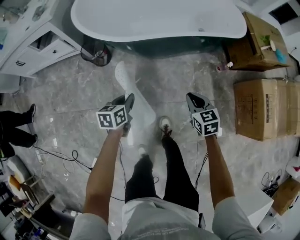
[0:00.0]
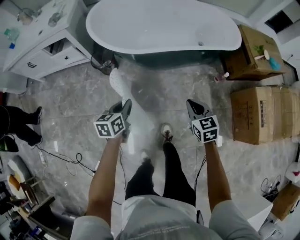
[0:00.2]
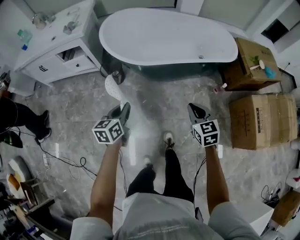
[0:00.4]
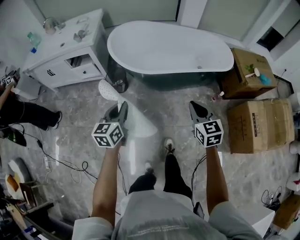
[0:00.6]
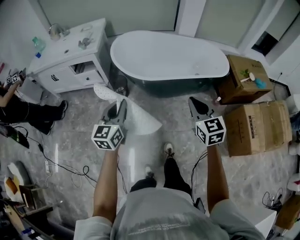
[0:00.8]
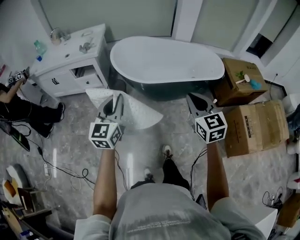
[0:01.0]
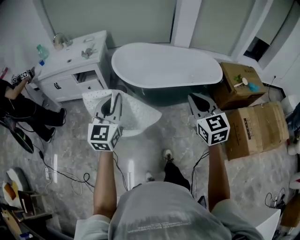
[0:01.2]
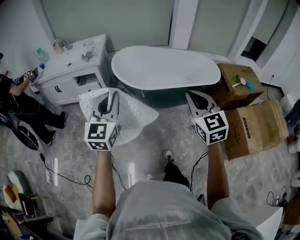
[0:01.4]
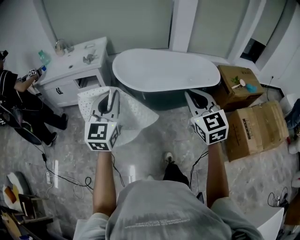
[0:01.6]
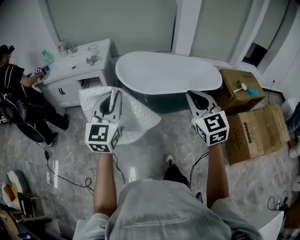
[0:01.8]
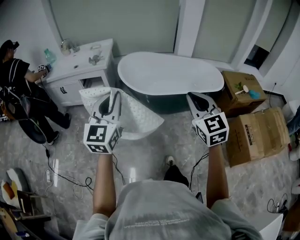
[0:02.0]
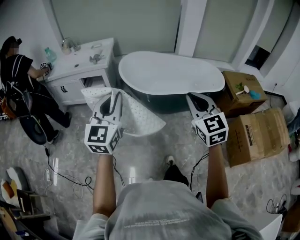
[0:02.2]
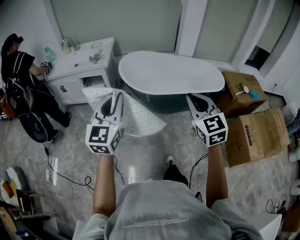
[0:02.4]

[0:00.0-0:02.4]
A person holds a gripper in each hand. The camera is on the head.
0:00.0 to 0:01.2: Both grippers move upward, roughly 50 cm. The right gripper rotates some 30 degrees; the left gripper angles its fingers upward, by roughly 40 degrees.
0:01.2 to 0:02.4: The right gripper shifts by approximately 5 cm, while the left gripper goes roughly 5 cm upward.

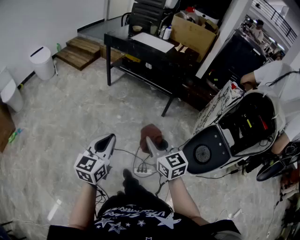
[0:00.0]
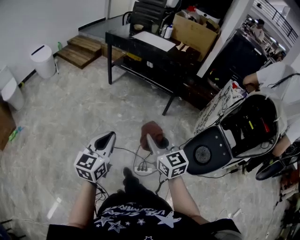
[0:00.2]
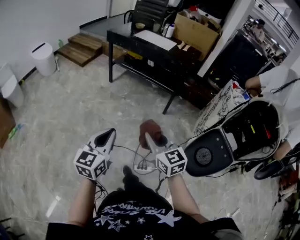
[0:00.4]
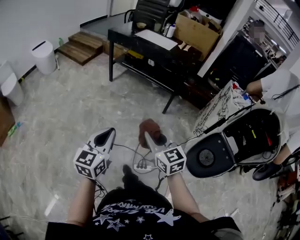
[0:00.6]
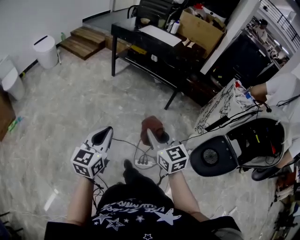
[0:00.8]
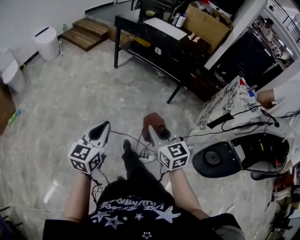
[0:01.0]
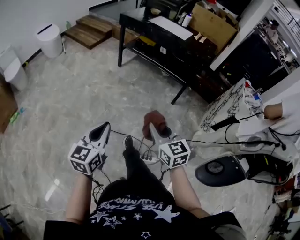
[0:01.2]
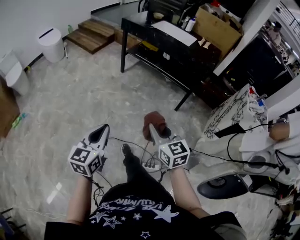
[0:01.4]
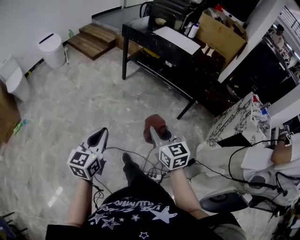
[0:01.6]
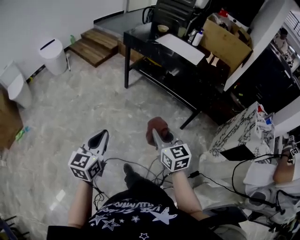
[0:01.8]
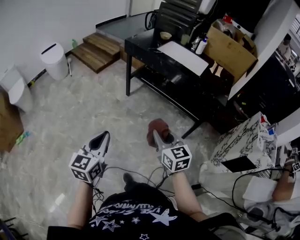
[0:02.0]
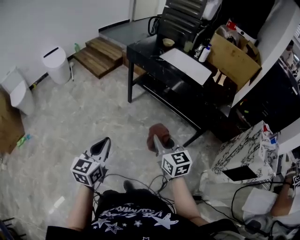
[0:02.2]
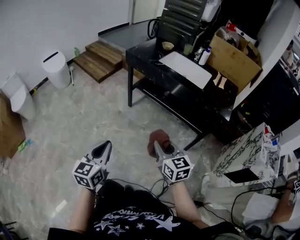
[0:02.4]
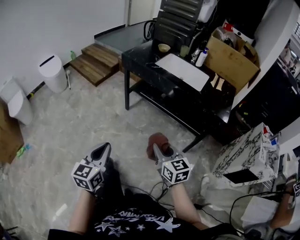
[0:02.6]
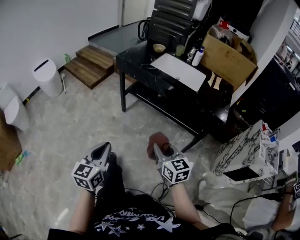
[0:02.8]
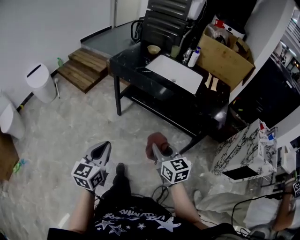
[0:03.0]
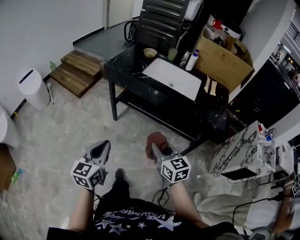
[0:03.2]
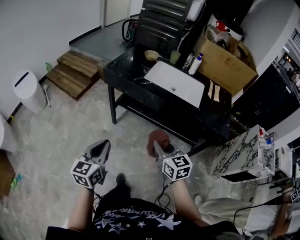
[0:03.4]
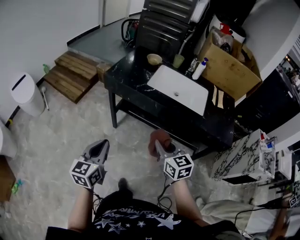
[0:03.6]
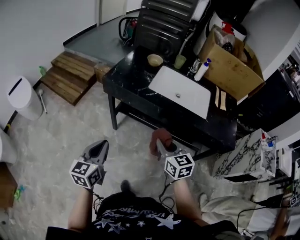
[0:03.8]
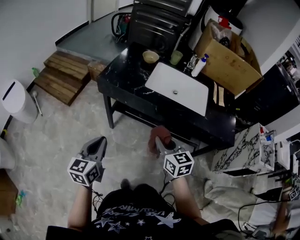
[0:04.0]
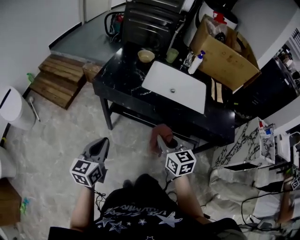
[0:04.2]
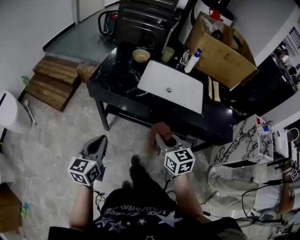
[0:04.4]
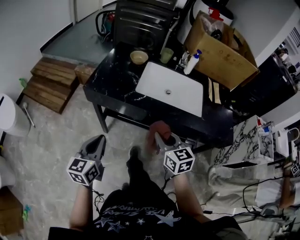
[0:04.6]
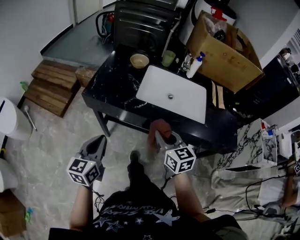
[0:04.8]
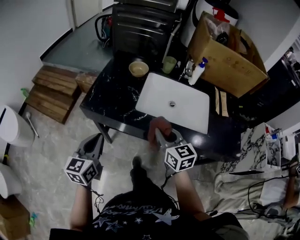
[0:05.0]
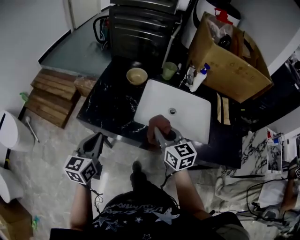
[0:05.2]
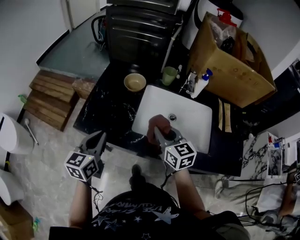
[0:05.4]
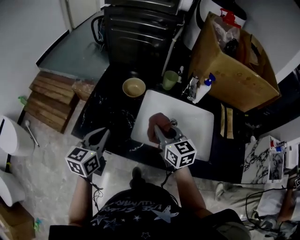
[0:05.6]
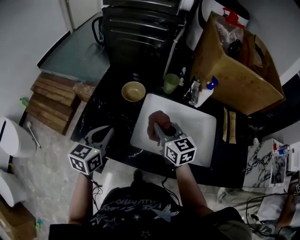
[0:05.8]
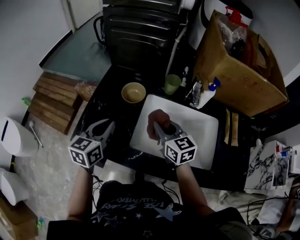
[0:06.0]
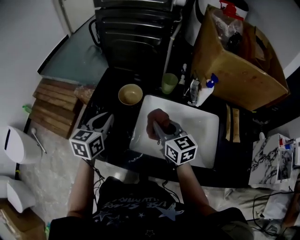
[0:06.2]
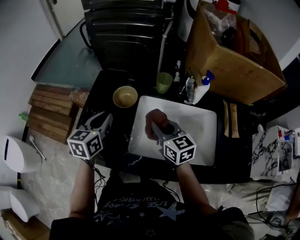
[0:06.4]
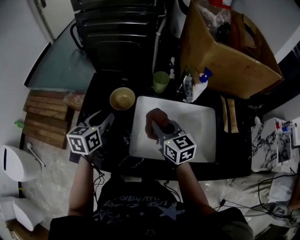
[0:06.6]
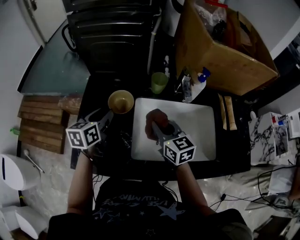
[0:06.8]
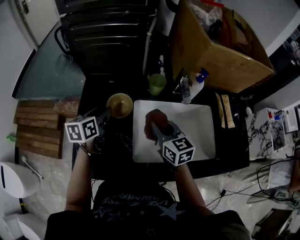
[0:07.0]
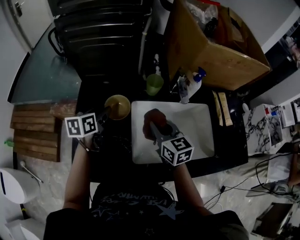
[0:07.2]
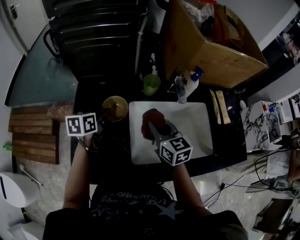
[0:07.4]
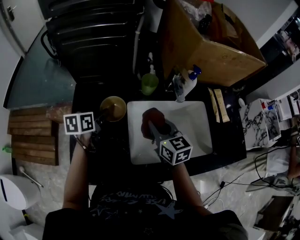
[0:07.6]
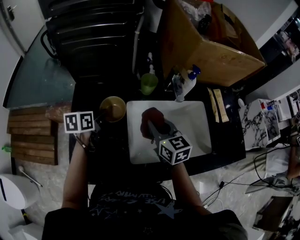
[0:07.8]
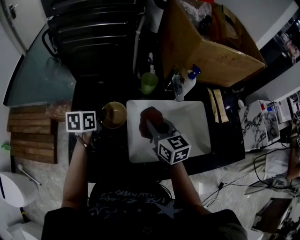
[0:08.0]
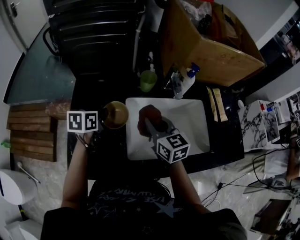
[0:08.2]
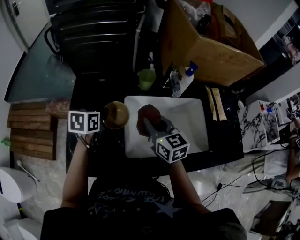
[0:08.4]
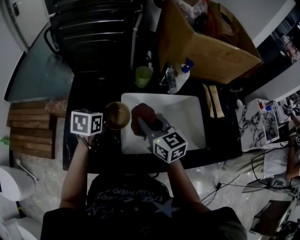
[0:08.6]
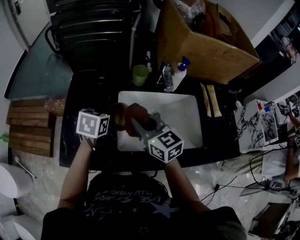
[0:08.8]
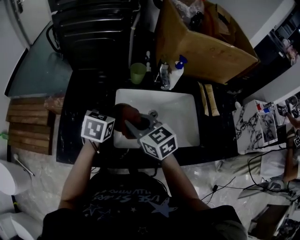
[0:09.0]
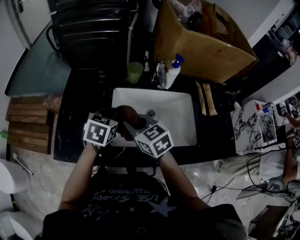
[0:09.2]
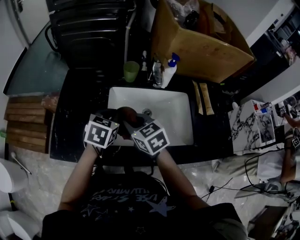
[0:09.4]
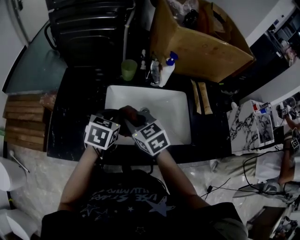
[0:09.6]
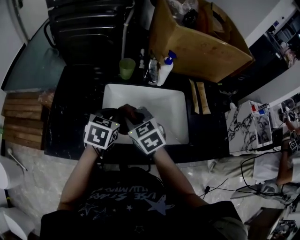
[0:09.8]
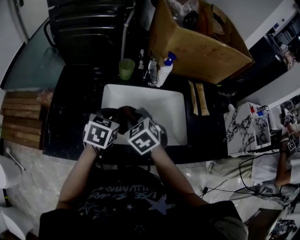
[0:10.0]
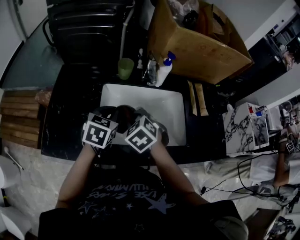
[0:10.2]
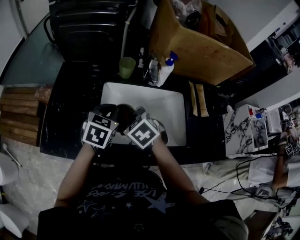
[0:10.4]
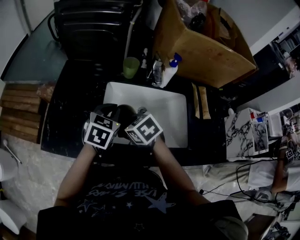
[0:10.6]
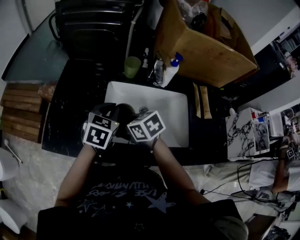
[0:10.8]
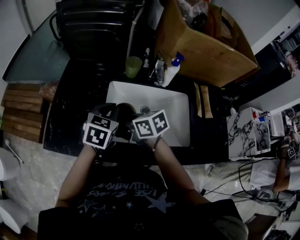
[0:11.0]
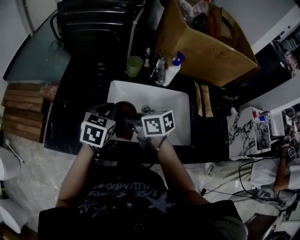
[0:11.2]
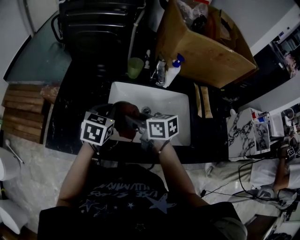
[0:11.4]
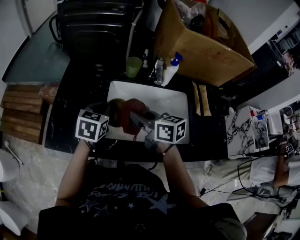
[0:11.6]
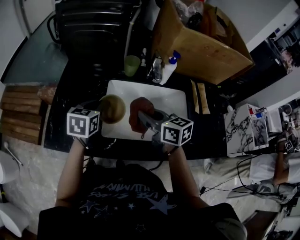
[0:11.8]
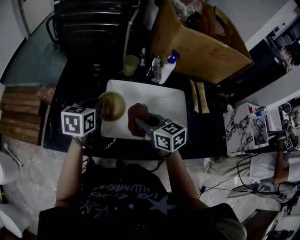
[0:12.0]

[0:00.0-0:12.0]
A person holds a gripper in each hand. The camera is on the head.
0:00.0 to 0:01.6: The grippers both shift forward and to the left by approximately 20 cm.
0:01.6 to 0:03.0: The grippers both shift forward by about 35 cm.
0:03.0 to 0:04.4: The two grippers go about 35 cm forward.
0:04.4 to 0:06.0: The two grippers go roughly 40 cm forward.
0:06.0 to 0:07.6: The right gripper moves forward, some 5 cm, and rotates some 20 degrees, while the left gripper heads forward and downward, covering roughly 20 cm, swivels about 30 degrees, and opens up.
0:07.6 to 0:09.0: The right gripper moves backward, roughly 10 cm, and turns by about 20 degrees. The left gripper is displaced to the right and backward by some 15 cm, turns by approximately 30 degrees, and closes up.
0:09.0 to 0:10.4: The right gripper travels downward and to the right by about 10 cm, and tips its fingers downward by roughly 30 degrees, while the left gripper shifts roughly 10 cm to the right.
0:10.4 to 0:12.0: The right gripper changes place by some 5 cm, and points its fingers approximately 30 degrees further upward; the left gripper shifts some 10 cm to the left.

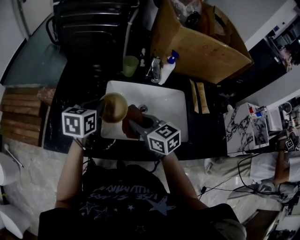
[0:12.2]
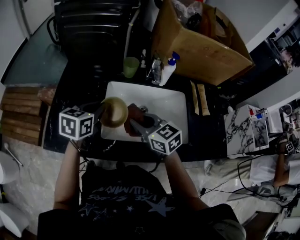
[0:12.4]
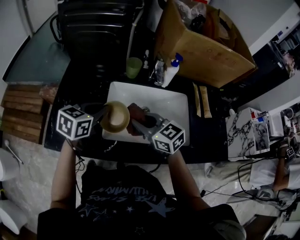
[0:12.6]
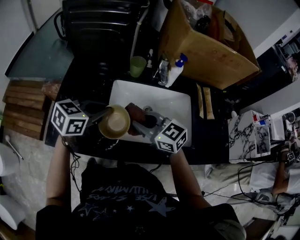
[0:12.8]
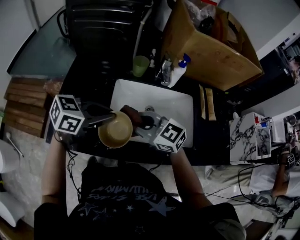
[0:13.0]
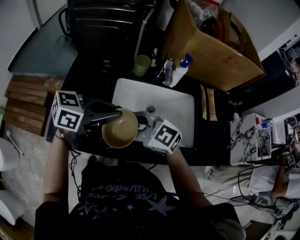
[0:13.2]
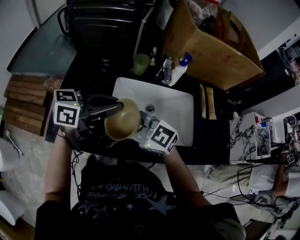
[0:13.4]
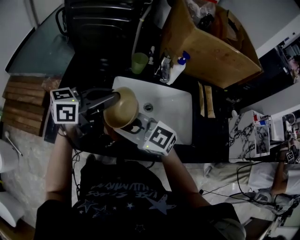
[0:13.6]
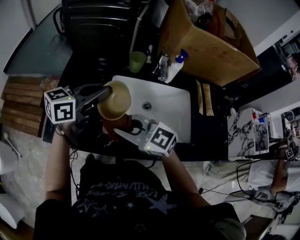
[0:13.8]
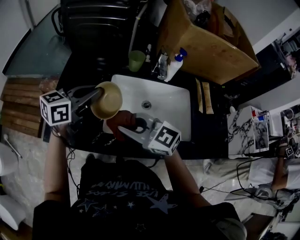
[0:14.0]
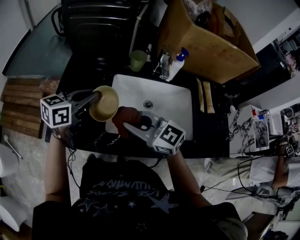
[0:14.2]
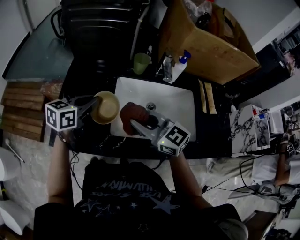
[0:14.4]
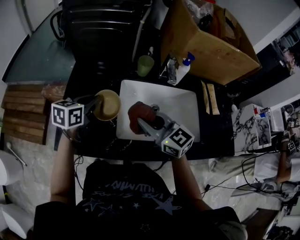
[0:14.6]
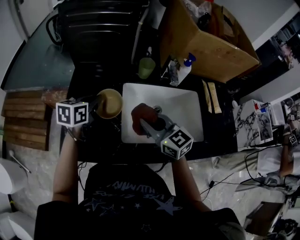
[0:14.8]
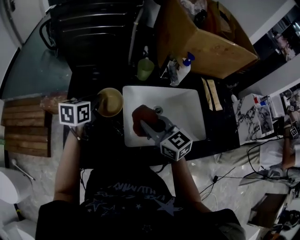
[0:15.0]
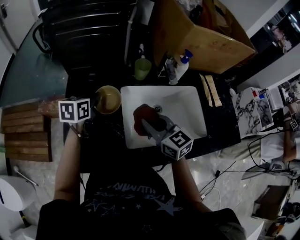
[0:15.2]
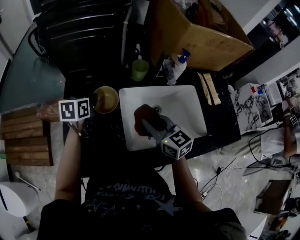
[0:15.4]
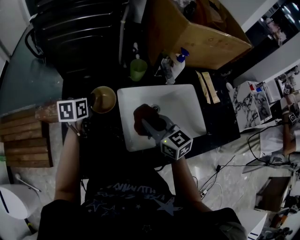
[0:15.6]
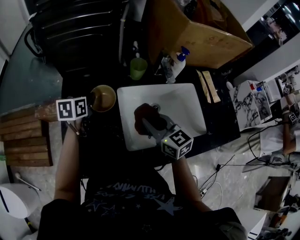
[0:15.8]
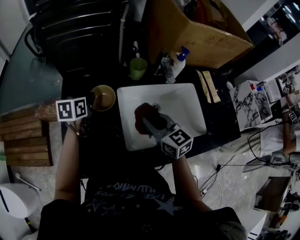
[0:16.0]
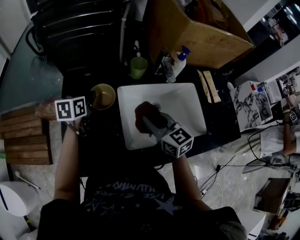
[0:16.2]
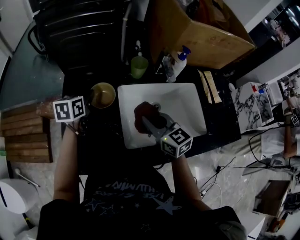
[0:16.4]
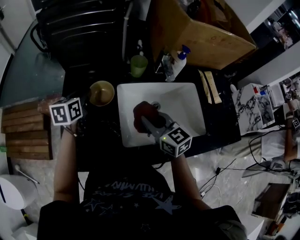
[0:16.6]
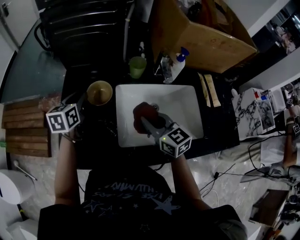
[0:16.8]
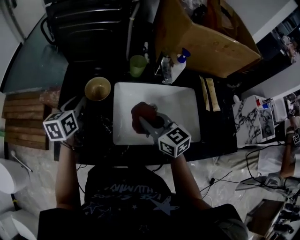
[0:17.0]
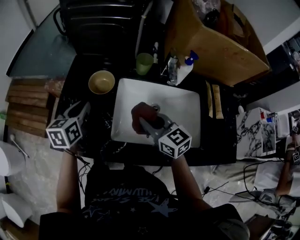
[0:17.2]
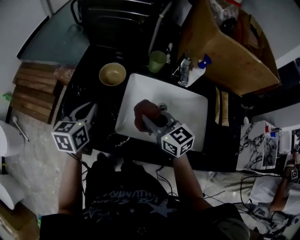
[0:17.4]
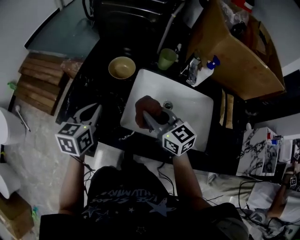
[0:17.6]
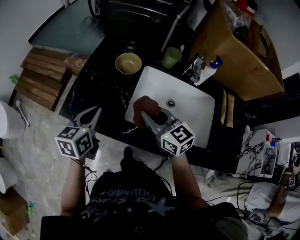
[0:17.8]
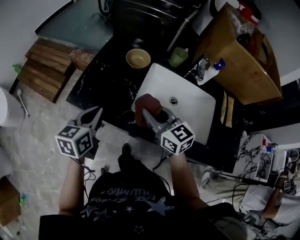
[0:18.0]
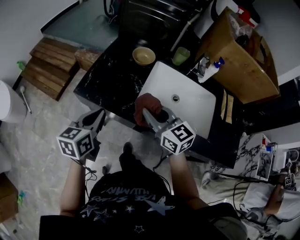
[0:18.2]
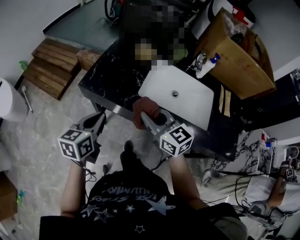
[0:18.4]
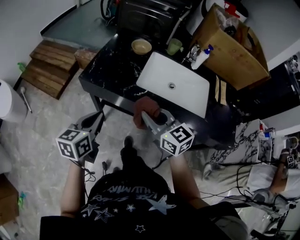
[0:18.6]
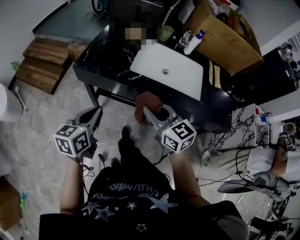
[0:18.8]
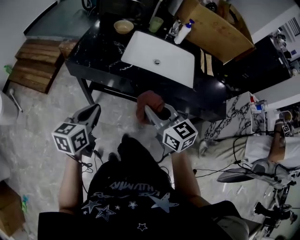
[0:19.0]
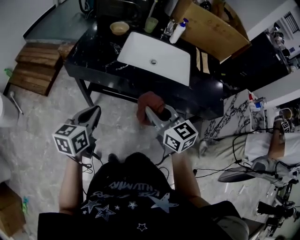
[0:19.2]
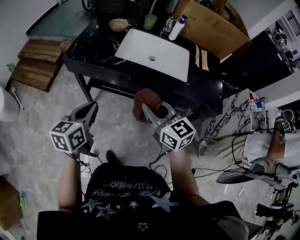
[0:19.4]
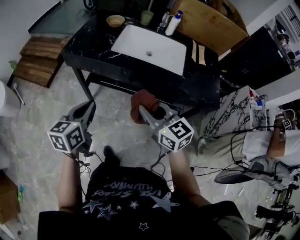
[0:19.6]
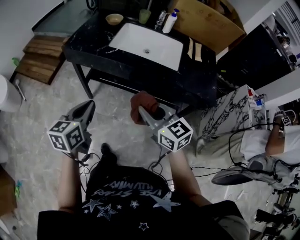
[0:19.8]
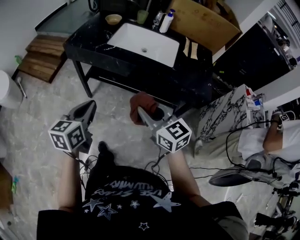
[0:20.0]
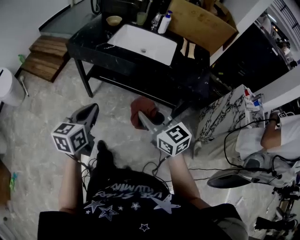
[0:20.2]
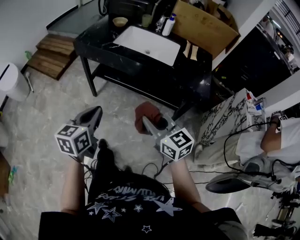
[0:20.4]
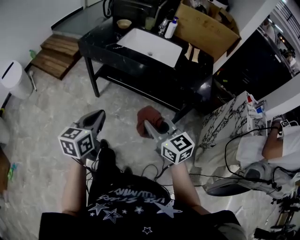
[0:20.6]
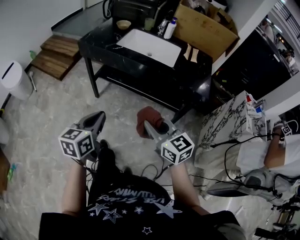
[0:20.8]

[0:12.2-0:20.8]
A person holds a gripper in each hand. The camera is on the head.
0:12.2 to 0:13.6: The left gripper shifts some 10 cm upward, and turns by roughly 40 degrees. Meanwhile the right gripper moves about 10 cm, and rotates about 40 degrees.
0:13.6 to 0:15.0: The right gripper ends up some 10 cm from where it was, and swivels roughly 40 degrees; the left gripper ends up roughly 20 cm from where it was, and rotates about 40 degrees.
0:16.6 to 0:18.0: The right gripper goes approximately 10 cm backward and to the left, and swivels roughly 30 degrees. The left gripper is displaced backward by approximately 30 cm, and turns by roughly 20 degrees.
0:18.0 to 0:19.4: The two grippers go roughly 30 cm backward.
0:19.4 to 0:20.8: The two grippers go about 30 cm backward.
